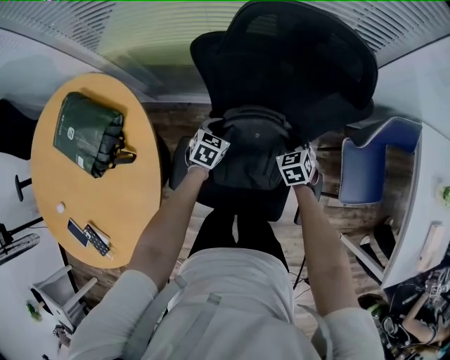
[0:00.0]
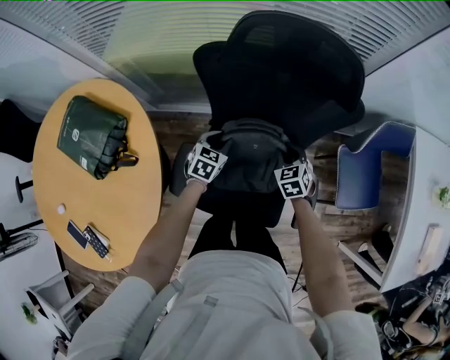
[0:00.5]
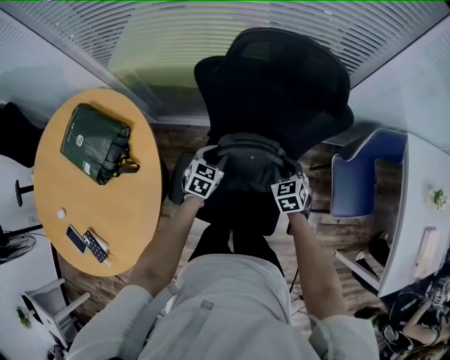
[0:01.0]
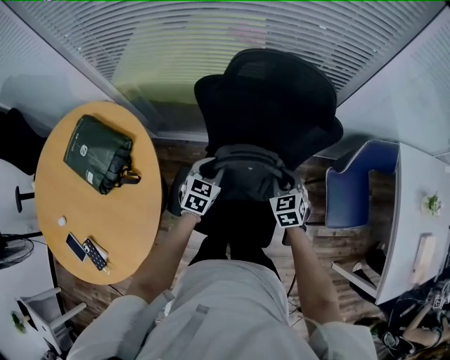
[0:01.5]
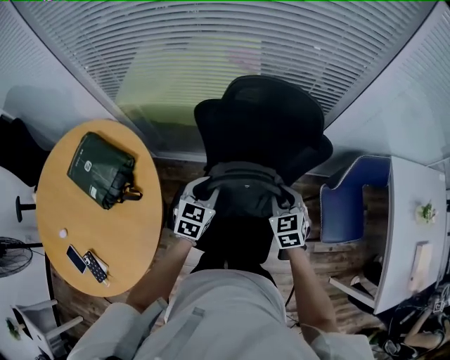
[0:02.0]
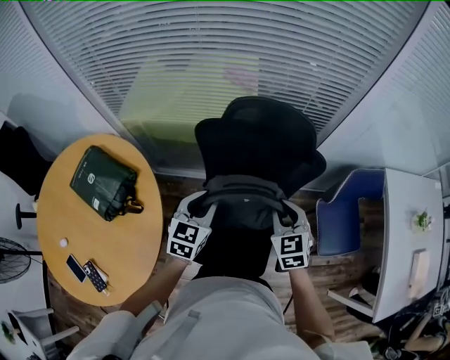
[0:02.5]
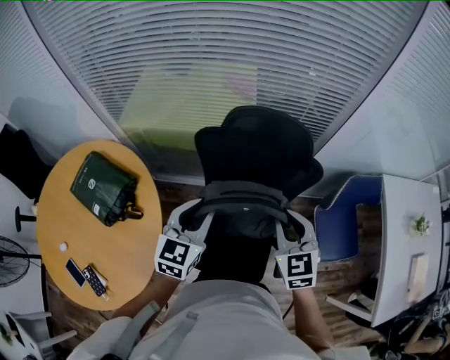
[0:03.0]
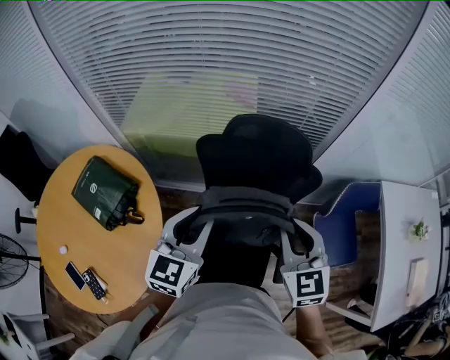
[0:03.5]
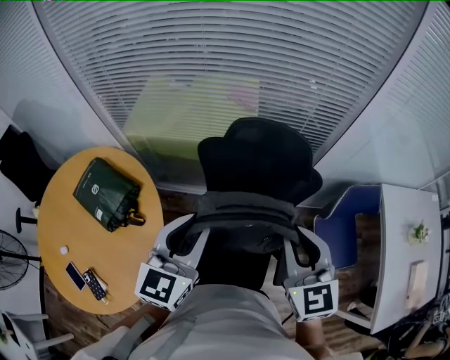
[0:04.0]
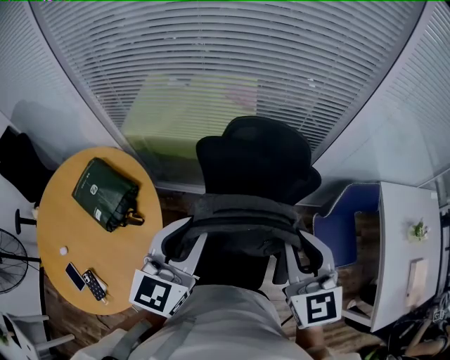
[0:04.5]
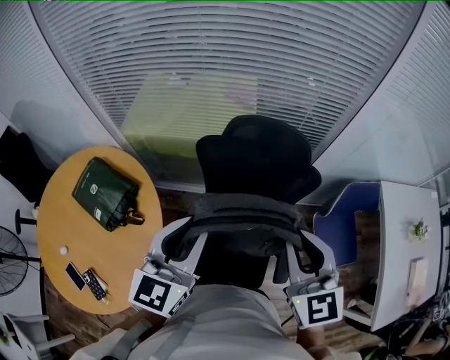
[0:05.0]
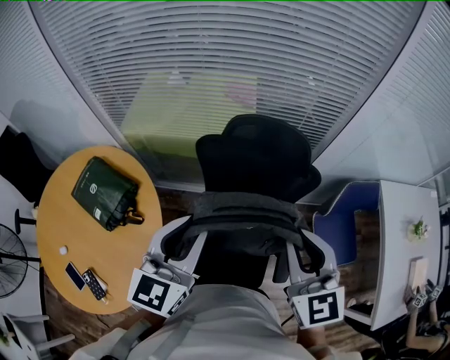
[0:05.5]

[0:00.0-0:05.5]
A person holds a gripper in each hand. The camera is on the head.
0.0 to 2.0 s: The grippers both shift upward by about 20 cm.
2.0 to 3.5 s: Both grippers travel together upward, approximately 20 cm.
3.5 to 5.5 s: The two grippers go approximately 5 cm upward.

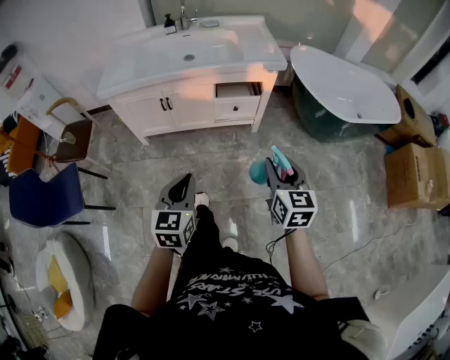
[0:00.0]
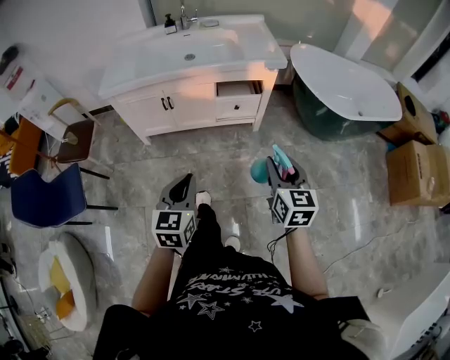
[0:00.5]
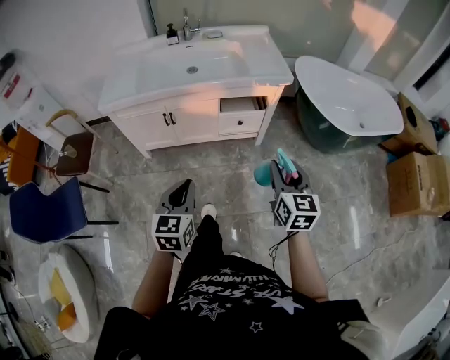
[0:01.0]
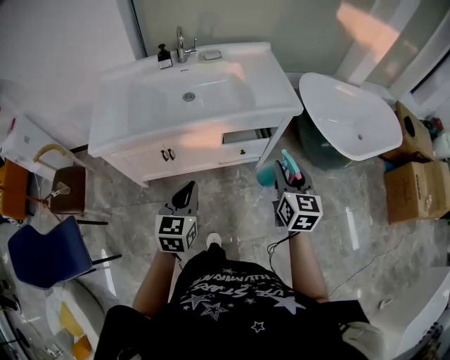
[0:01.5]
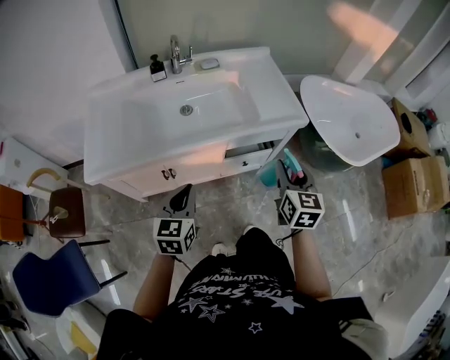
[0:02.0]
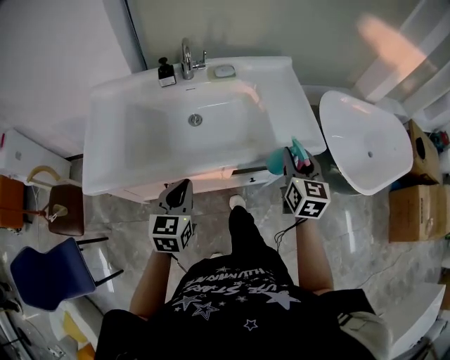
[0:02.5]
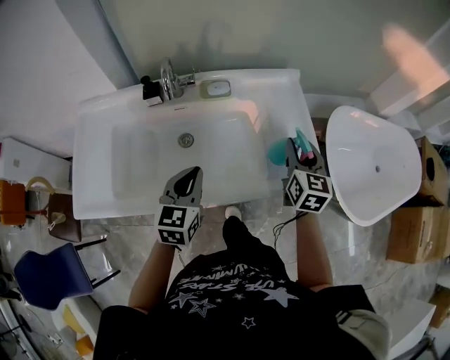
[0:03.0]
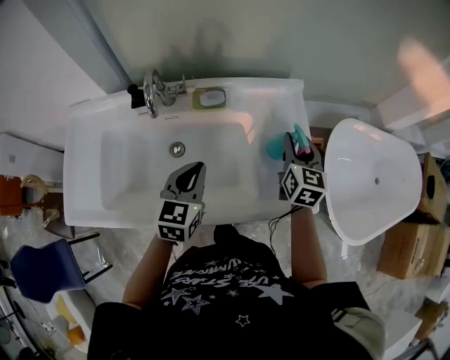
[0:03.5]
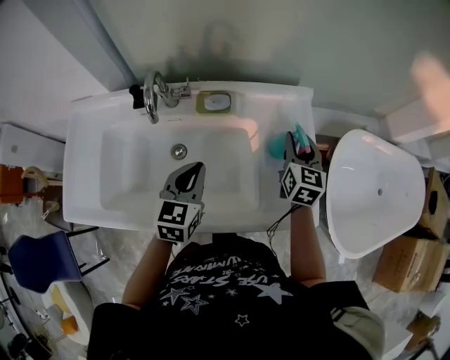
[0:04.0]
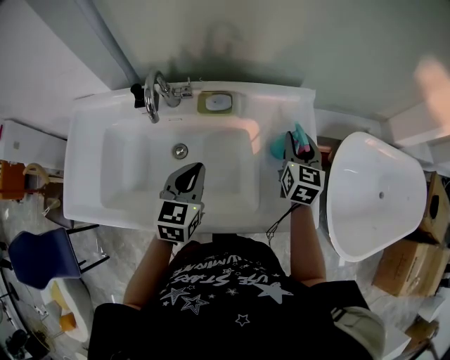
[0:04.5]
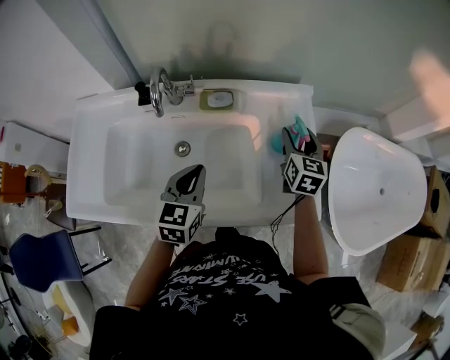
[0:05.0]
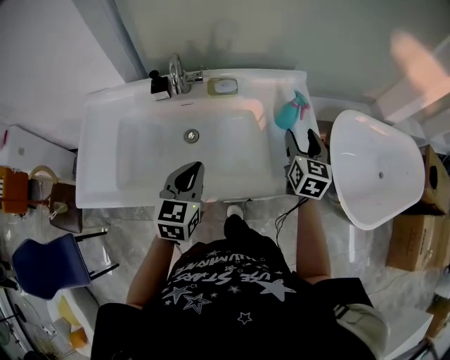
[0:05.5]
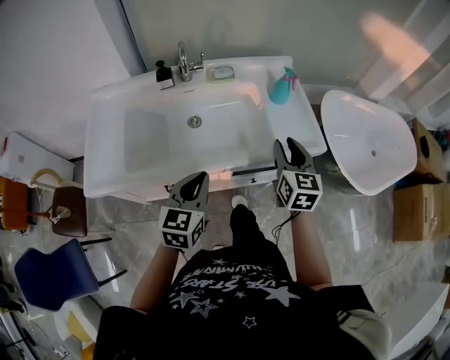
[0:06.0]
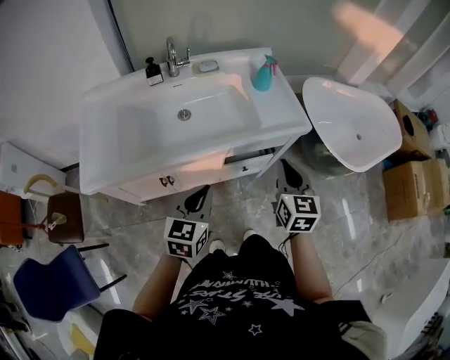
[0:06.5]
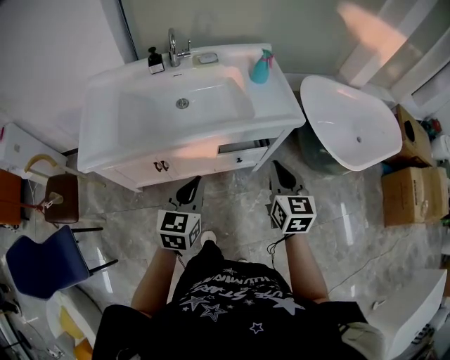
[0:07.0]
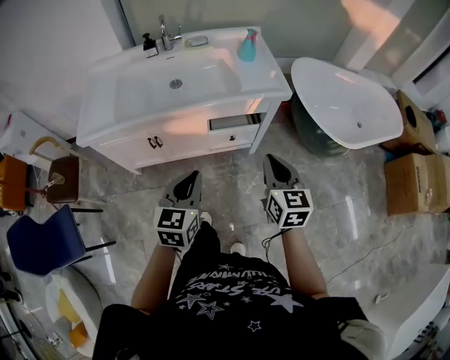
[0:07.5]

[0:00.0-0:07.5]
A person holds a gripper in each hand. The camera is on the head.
0.0 to 2.0 s: The left gripper moves forward and to the left, roughly 40 cm; the right gripper heads forward, covering roughly 35 cm.
2.0 to 4.0 s: Both grippers are carried forward, approximately 50 cm.
4.0 to 5.5 s: The two grippers go about 10 cm backward. The right gripper opens up.
5.5 to 7.5 s: The grippers both shift backward by approximately 40 cm. The right gripper closes its fingers.

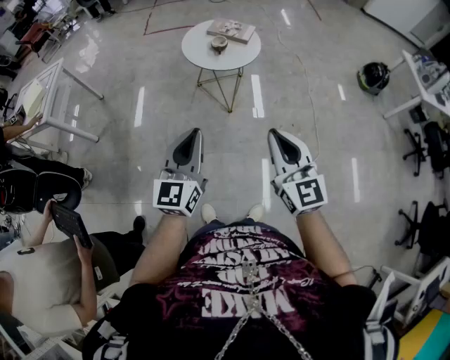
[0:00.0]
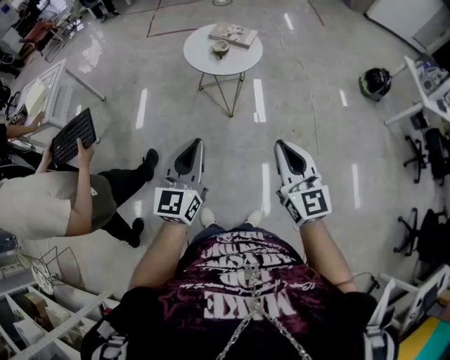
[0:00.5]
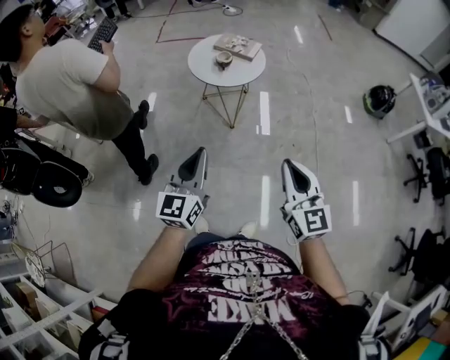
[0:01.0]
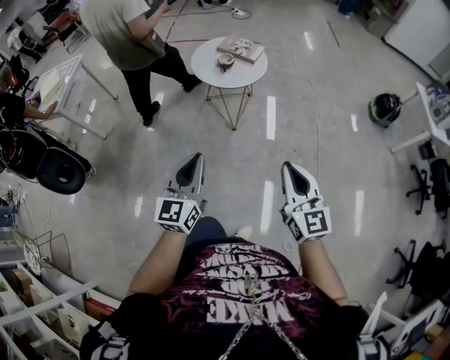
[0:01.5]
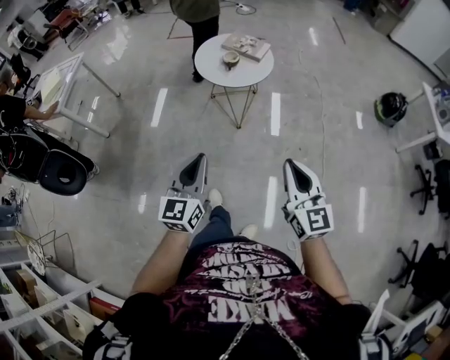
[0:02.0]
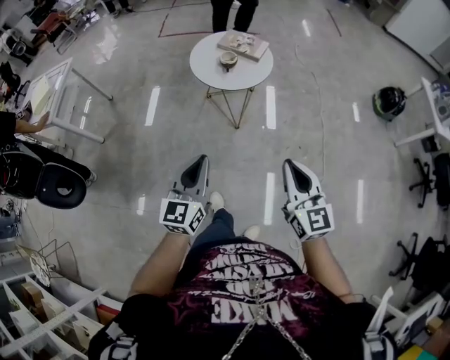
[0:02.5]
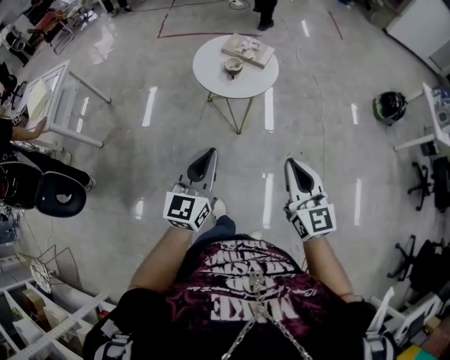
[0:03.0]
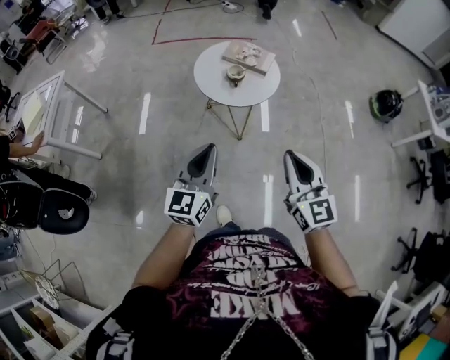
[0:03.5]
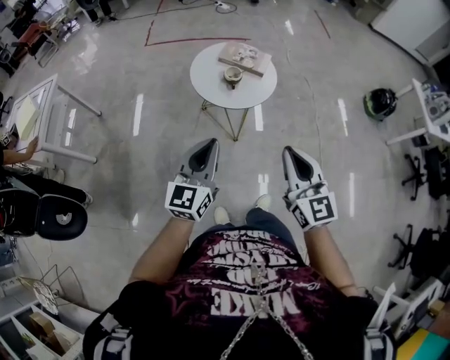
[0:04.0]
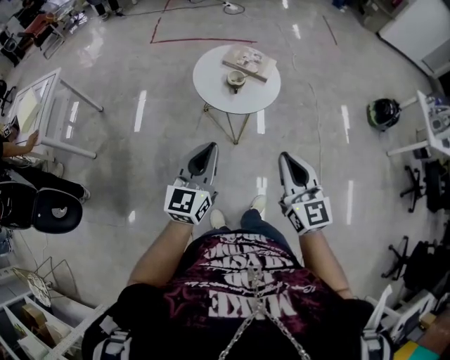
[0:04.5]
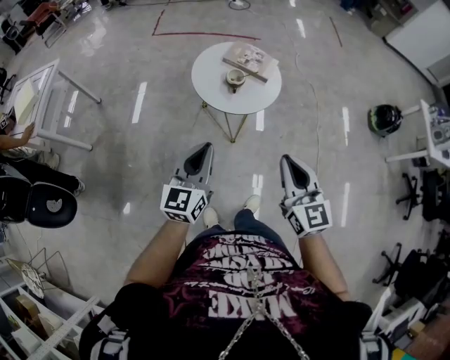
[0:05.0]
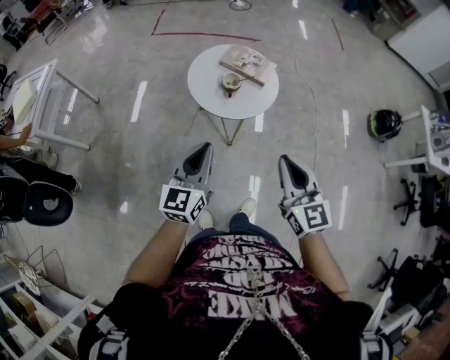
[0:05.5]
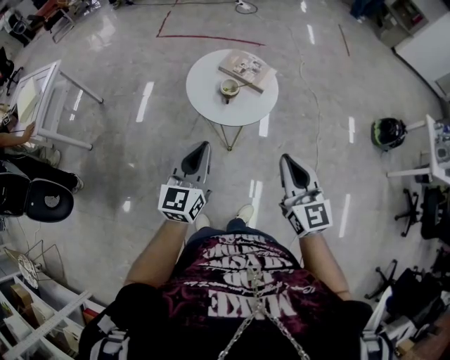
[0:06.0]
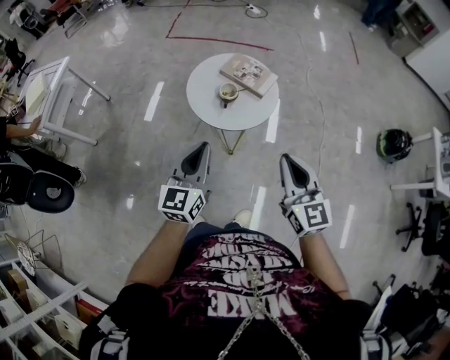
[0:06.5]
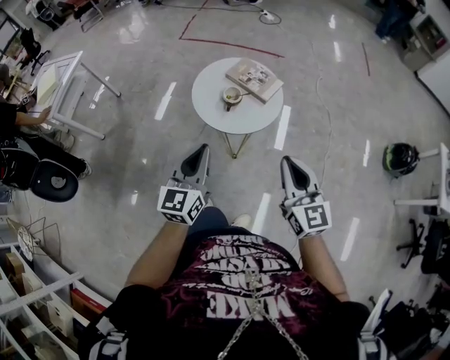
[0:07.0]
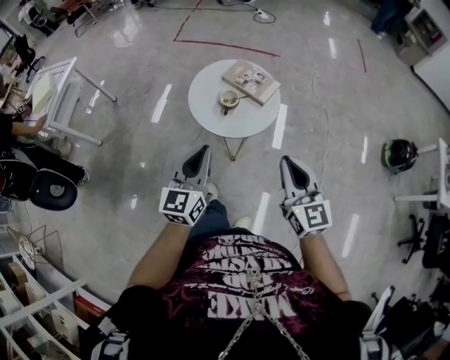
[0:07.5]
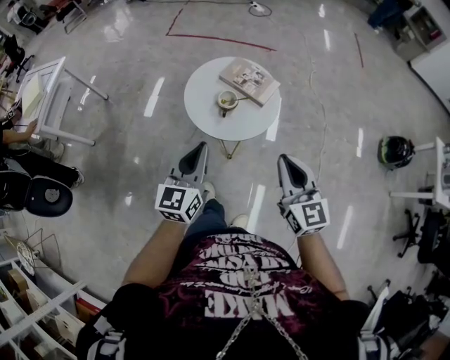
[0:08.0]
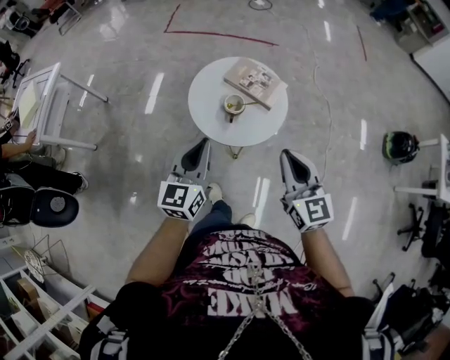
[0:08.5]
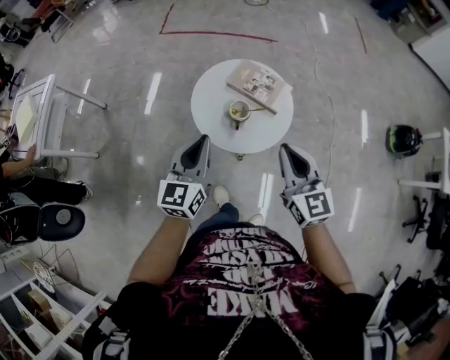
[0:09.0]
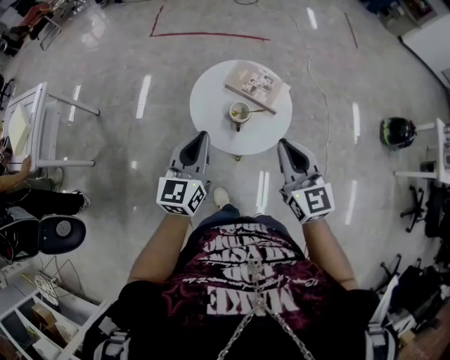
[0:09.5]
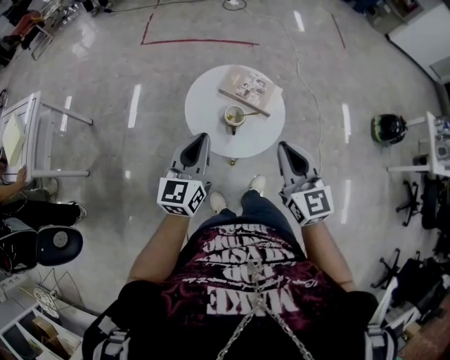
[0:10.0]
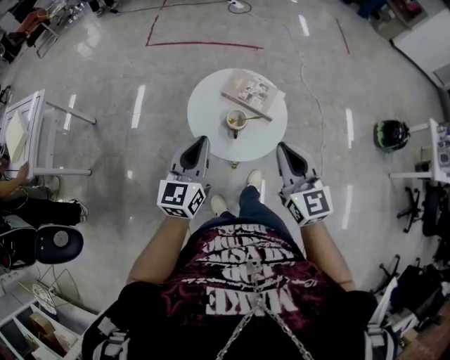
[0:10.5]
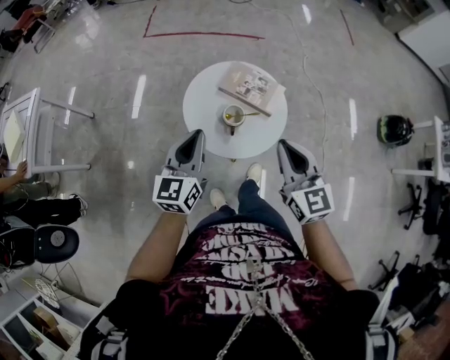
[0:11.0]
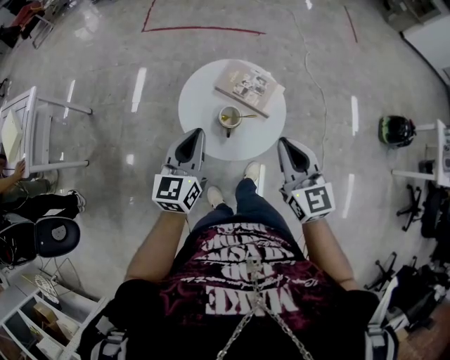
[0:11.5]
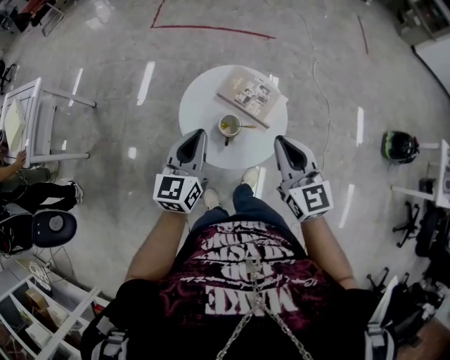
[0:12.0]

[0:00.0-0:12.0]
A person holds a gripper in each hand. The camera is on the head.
0.0 to 2.0 s: The left gripper shifts some 5 cm to the right. Meanwhile the right gripper travels to the right by roughly 10 cm.
2.0 to 4.0 s: The right gripper shifts about 20 cm forward and to the left. Meanwhile the left gripper moves forward, roughly 20 cm.
4.0 to 6.0 s: Both grippers travel together forward and to the right, approximately 15 cm.
6.0 to 8.0 s: Both grippers move forward, about 10 cm.
8.0 to 10.0 s: The grippers both shift forward and to the left by some 15 cm.
10.0 to 12.0 s: Both grippers travel together forward, roughly 10 cm.

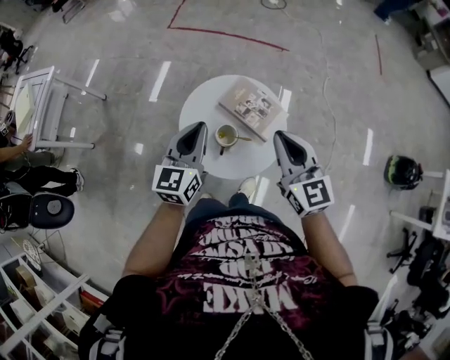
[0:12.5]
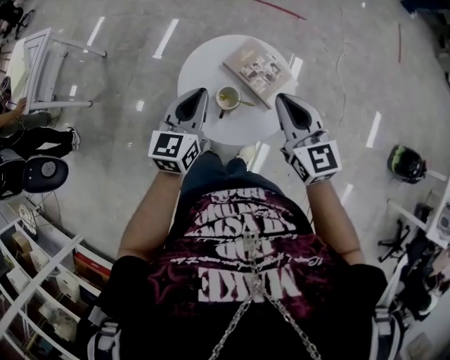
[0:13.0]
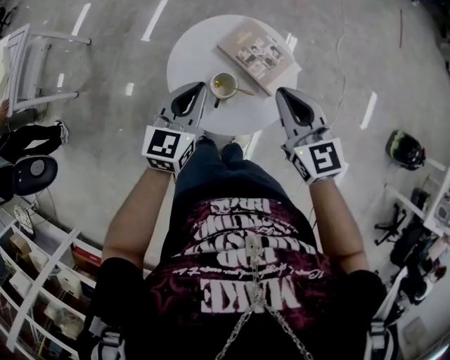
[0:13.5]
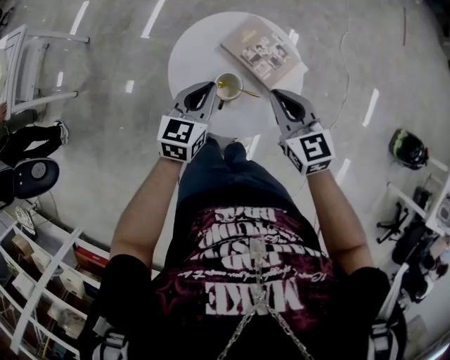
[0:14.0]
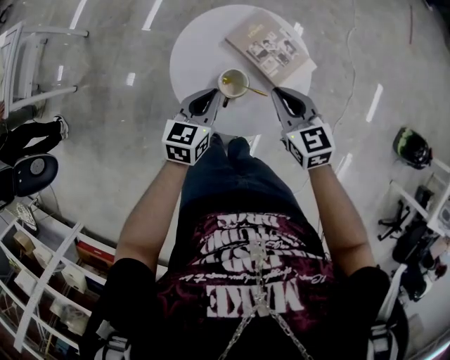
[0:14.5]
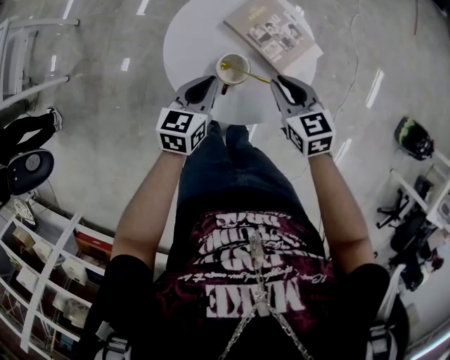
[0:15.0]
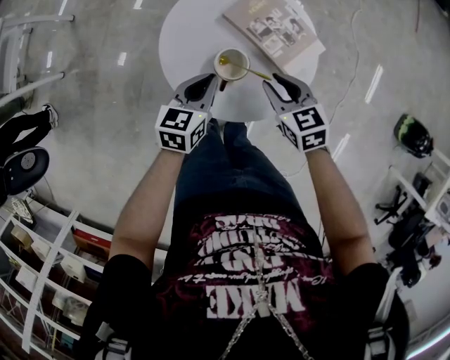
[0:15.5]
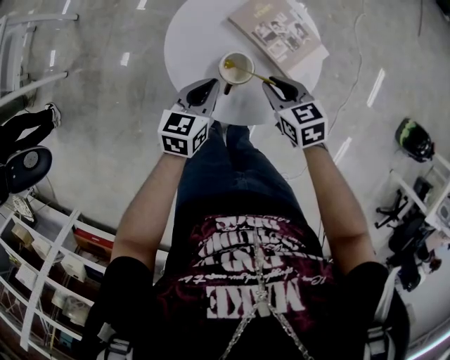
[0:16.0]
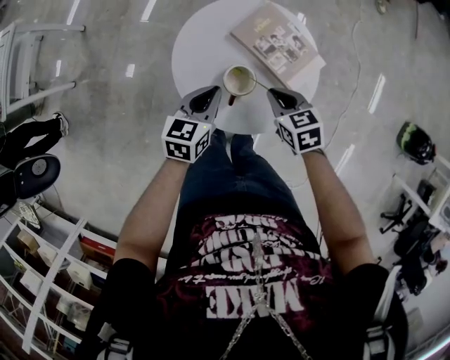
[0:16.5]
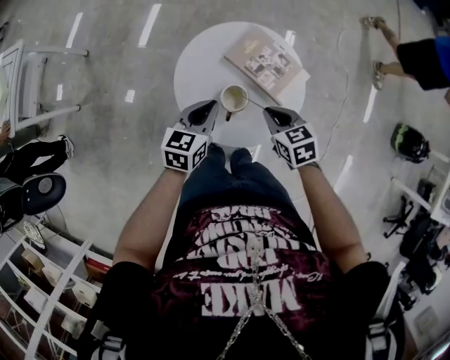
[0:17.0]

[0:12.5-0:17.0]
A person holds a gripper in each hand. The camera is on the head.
12.5 to 14.5 s: The two grippers go roughly 20 cm downward. The left gripper swivels about 20 degrees. The right gripper swivels some 20 degrees.
